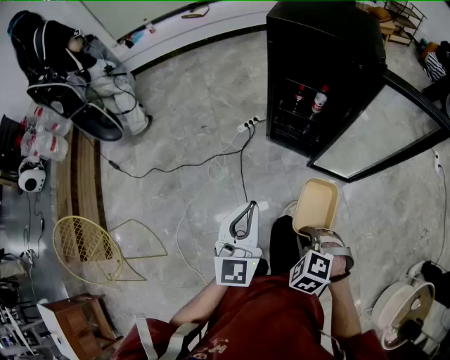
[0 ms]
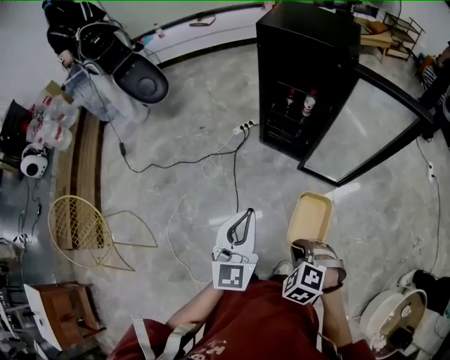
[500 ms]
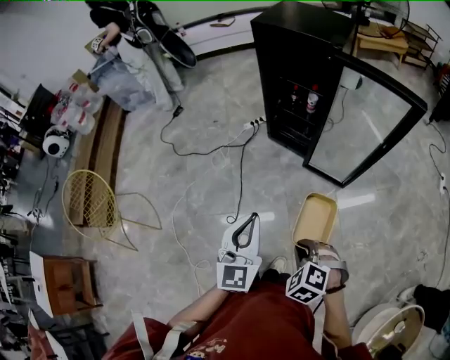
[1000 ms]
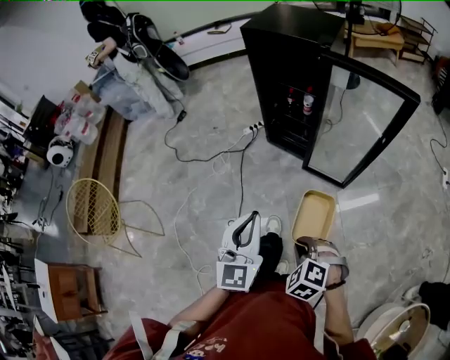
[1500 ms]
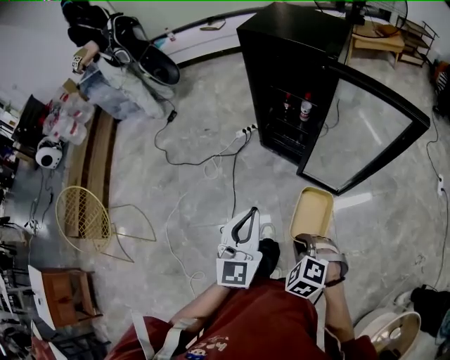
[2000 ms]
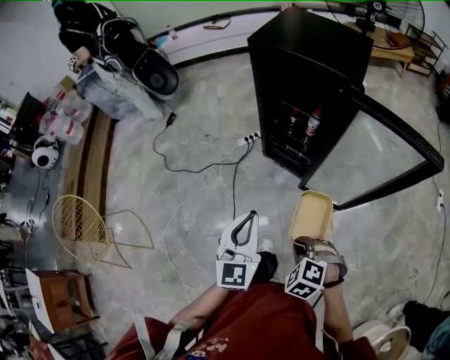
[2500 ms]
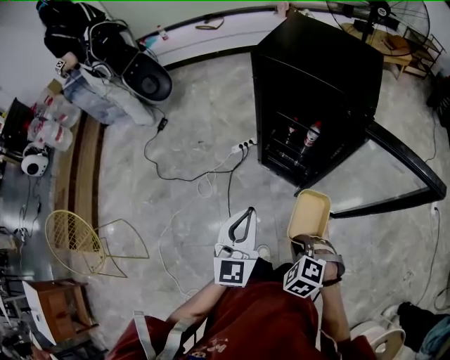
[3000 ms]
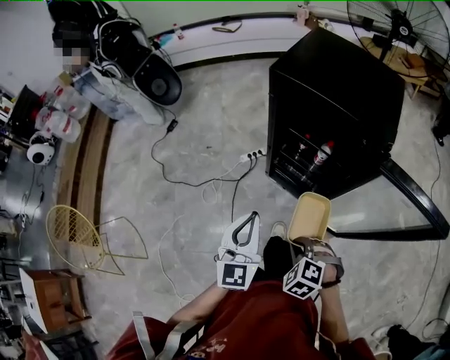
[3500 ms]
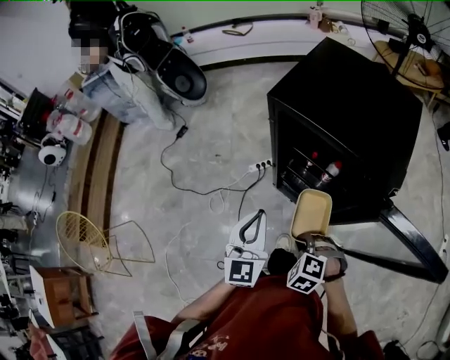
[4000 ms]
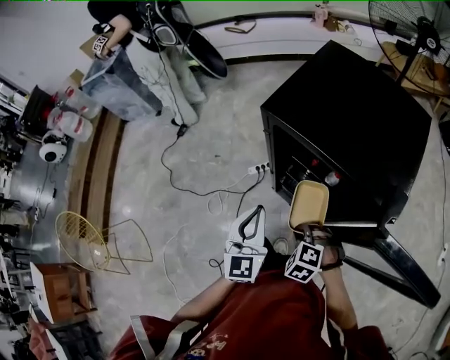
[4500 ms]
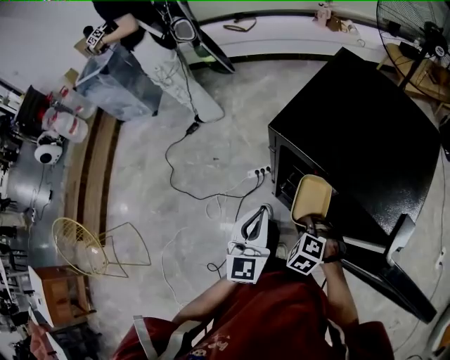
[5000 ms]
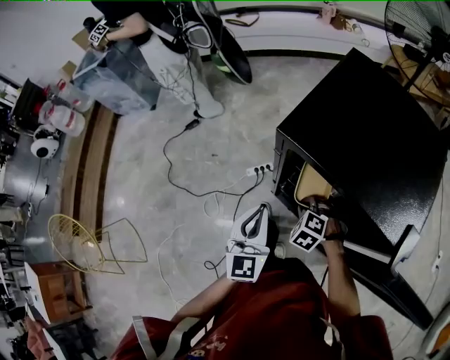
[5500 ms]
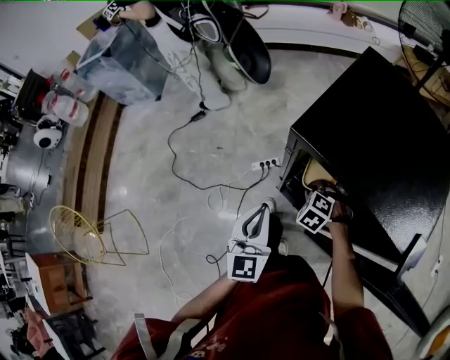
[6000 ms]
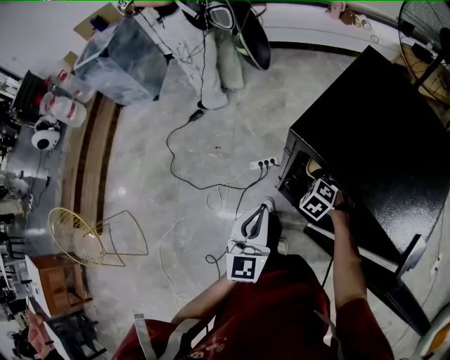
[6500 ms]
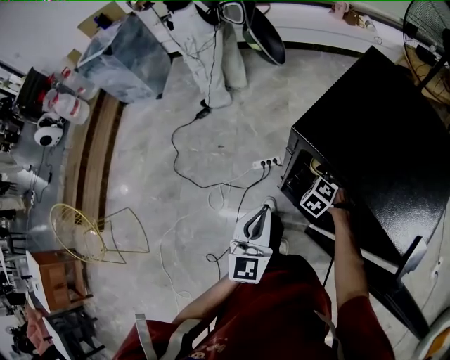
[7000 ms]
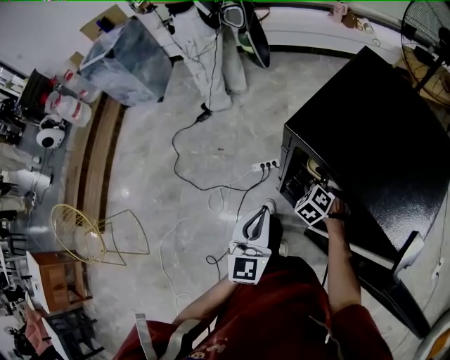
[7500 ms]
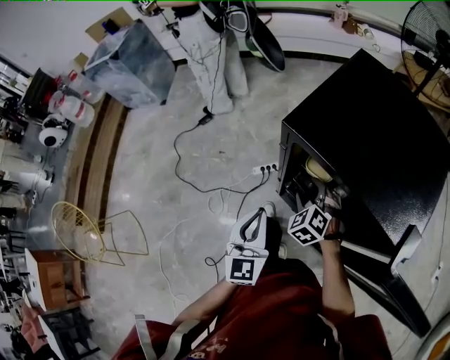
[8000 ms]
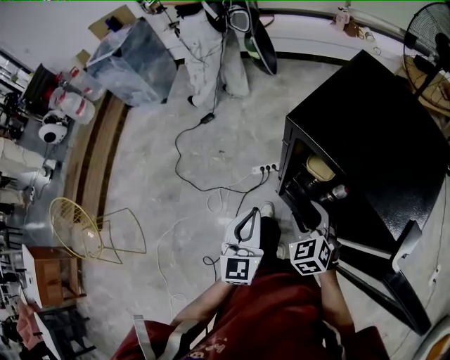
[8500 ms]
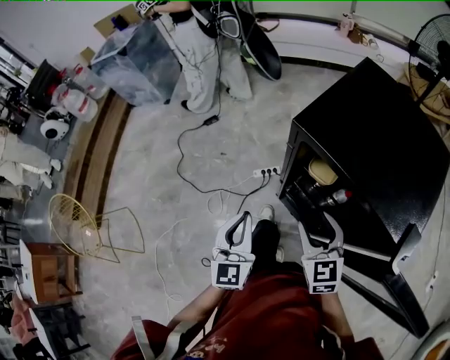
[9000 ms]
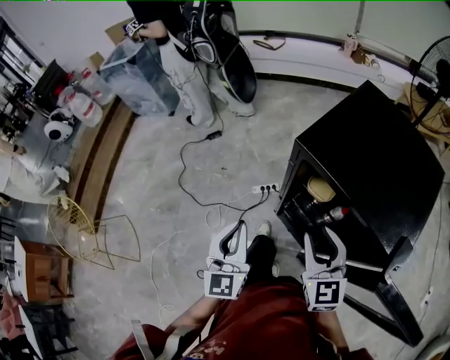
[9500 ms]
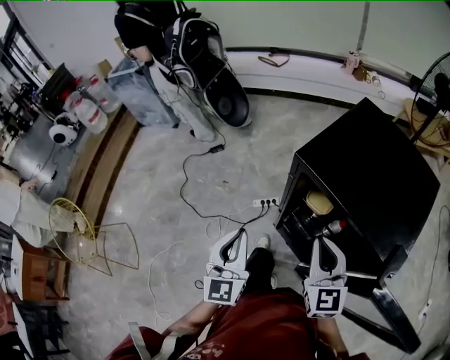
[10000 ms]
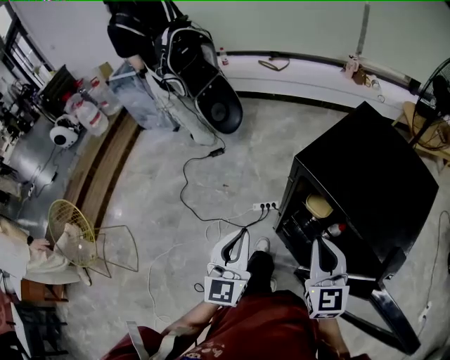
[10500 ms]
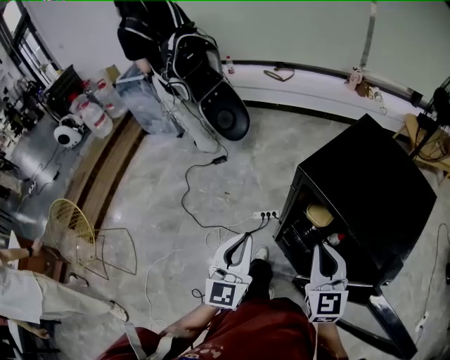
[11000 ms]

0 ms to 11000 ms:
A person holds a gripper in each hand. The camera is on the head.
0 ms to 2000 ms: Both grippers travel together to the right and backward, approximately 20 cm.
2000 ms to 3500 ms: The two grippers go roughly 25 cm forward.
3500 ms to 5500 ms: The grippers both shift forward by roughly 30 cm.
5500 ms to 7500 ms: The right gripper heads forward, covering some 10 cm, and opens its fingers.
7500 ms to 9000 ms: The right gripper is displaced upward and backward by approximately 25 cm, and tips its fingers upward by roughly 30 degrees. The left gripper heads to the left, covering approximately 5 cm.
9000 ms to 11000 ms: The grippers both shift upward by about 10 cm. The right gripper closes up.

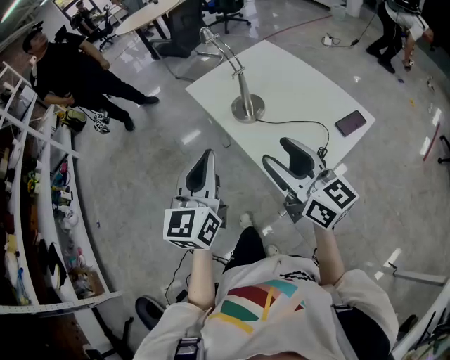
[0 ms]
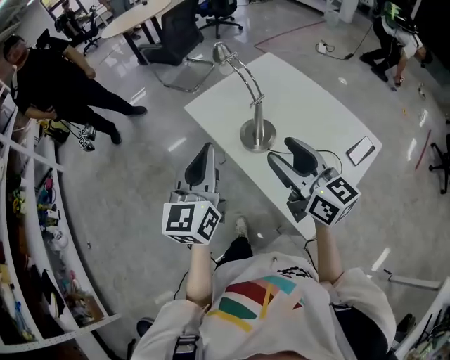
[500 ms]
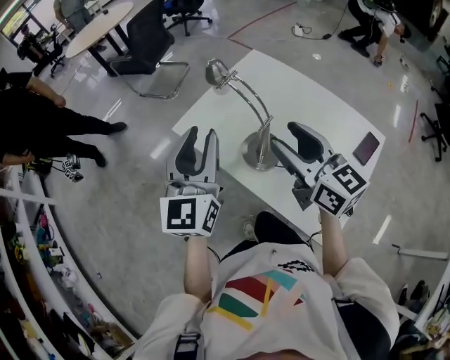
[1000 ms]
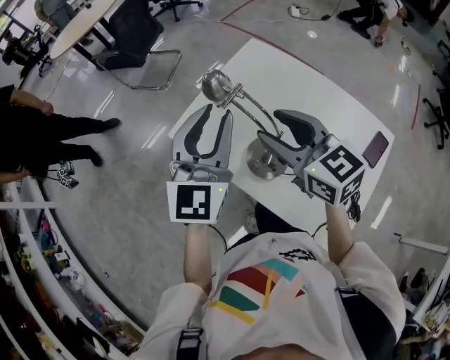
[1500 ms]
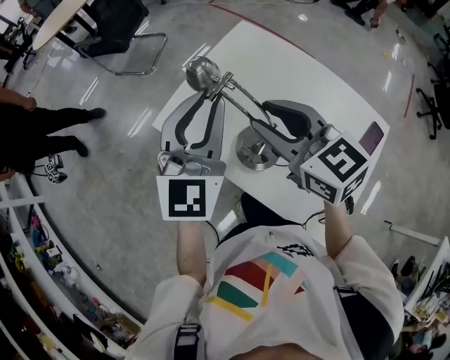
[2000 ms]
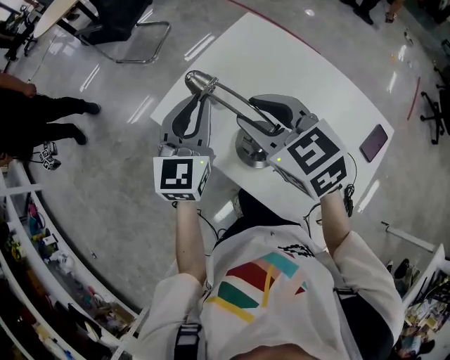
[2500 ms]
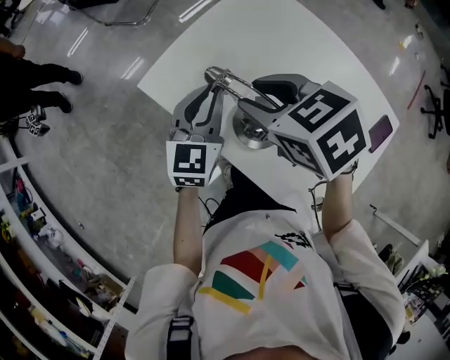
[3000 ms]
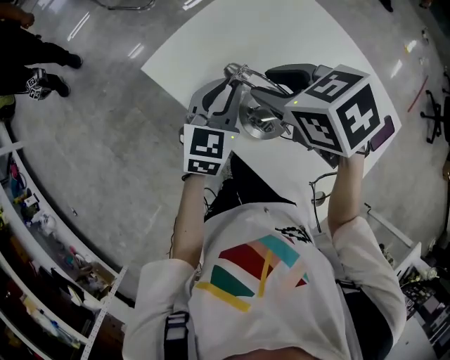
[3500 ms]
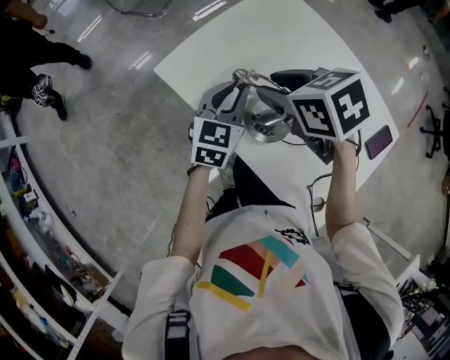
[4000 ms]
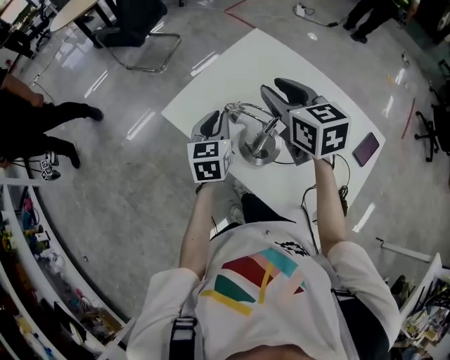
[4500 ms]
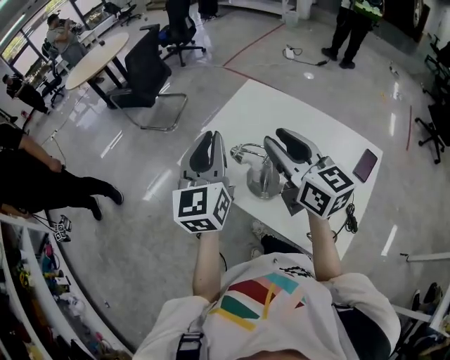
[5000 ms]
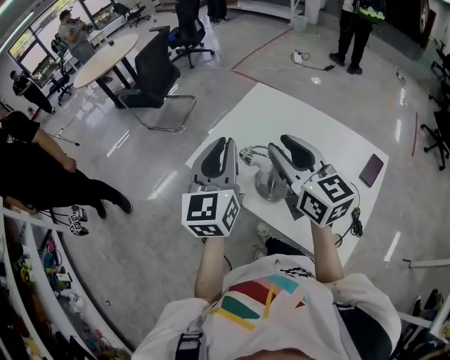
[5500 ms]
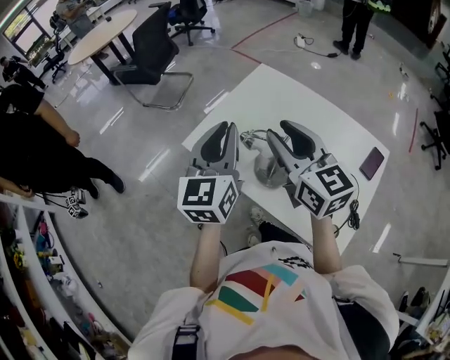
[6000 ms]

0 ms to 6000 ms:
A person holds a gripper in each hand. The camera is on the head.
0 ms to 2000 ms: The pair of grippers is taken forward, some 50 cm. The right gripper swivels roughly 30 degrees, and closes its fingers, while the left gripper rotates some 30 degrees.
2000 ms to 4000 ms: The right gripper shifts approximately 10 cm downward, and tilts its fingers roughly 30 degrees downward; the left gripper is displaced downward by approximately 25 cm, and turns by about 30 degrees.
4000 ms to 6000 ms: The right gripper goes roughly 20 cm upward and backward, and points its fingers about 50 degrees further upward. Meanwhile the left gripper moves upward, about 25 cm, and swivels about 20 degrees.

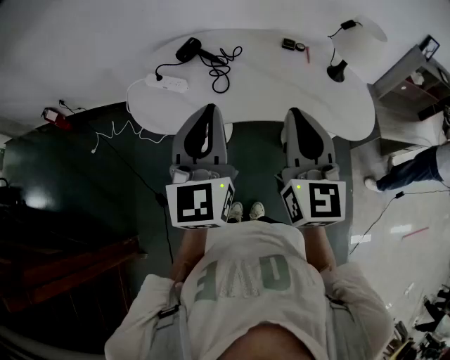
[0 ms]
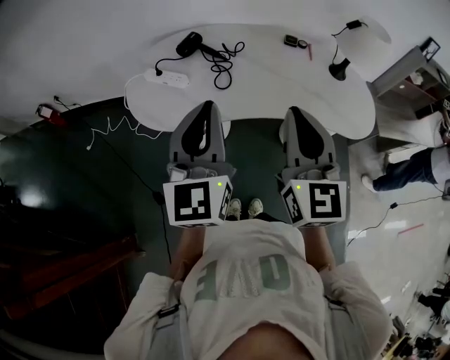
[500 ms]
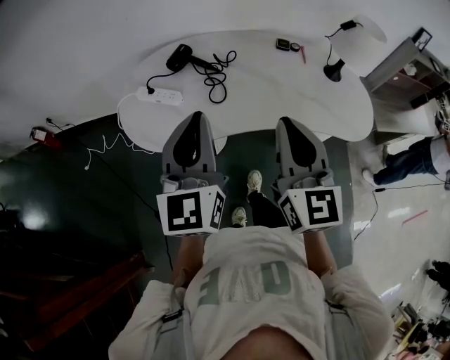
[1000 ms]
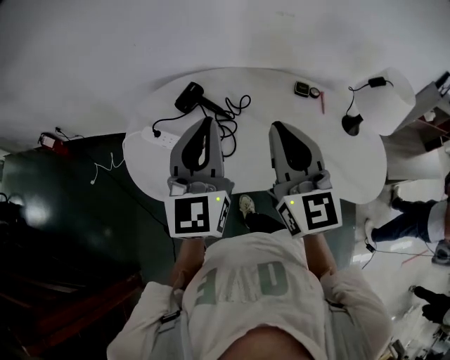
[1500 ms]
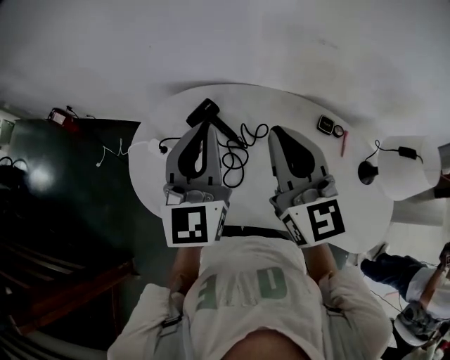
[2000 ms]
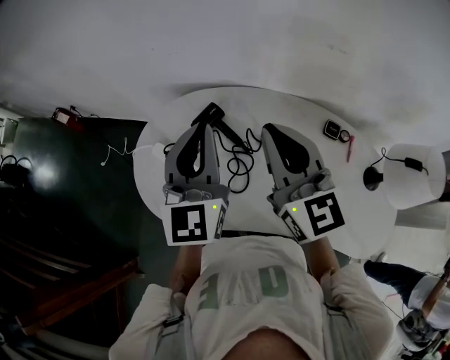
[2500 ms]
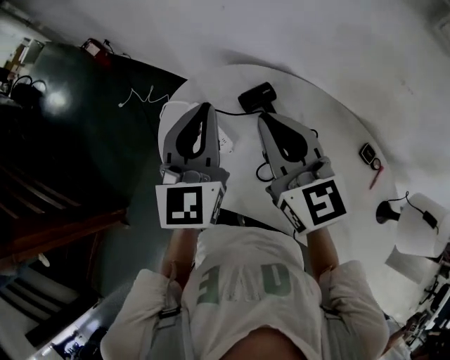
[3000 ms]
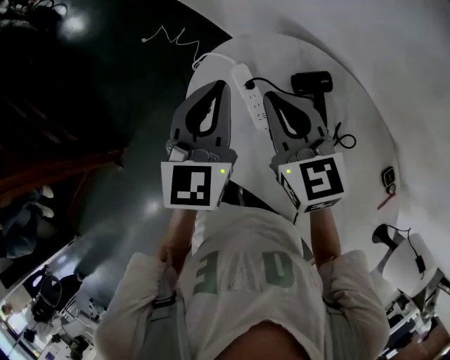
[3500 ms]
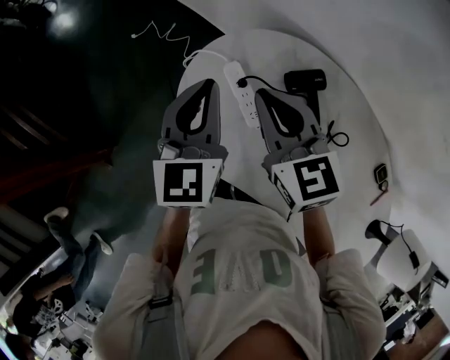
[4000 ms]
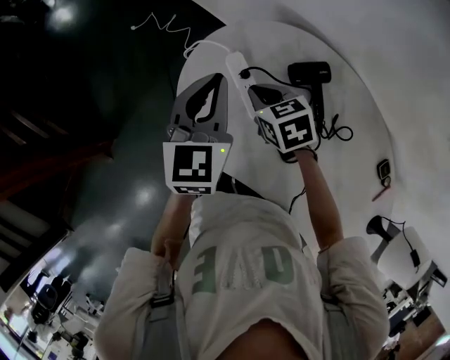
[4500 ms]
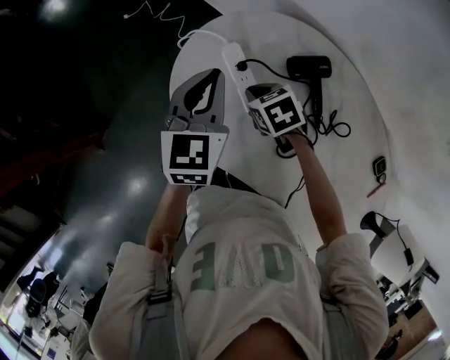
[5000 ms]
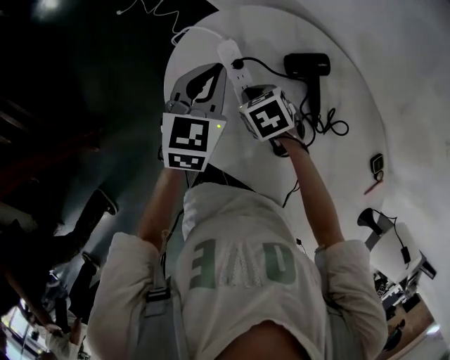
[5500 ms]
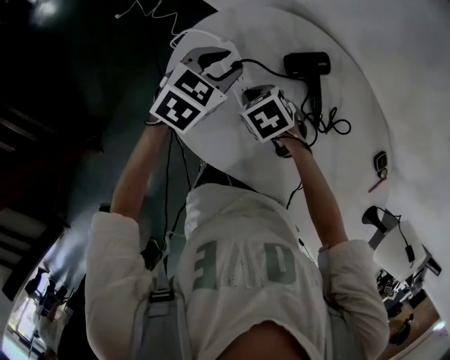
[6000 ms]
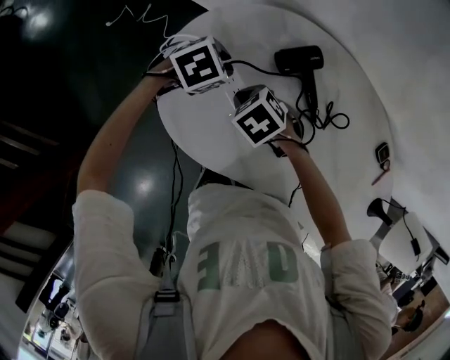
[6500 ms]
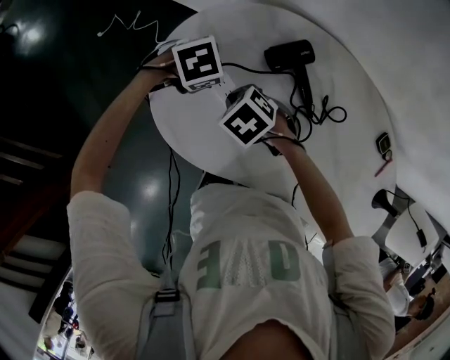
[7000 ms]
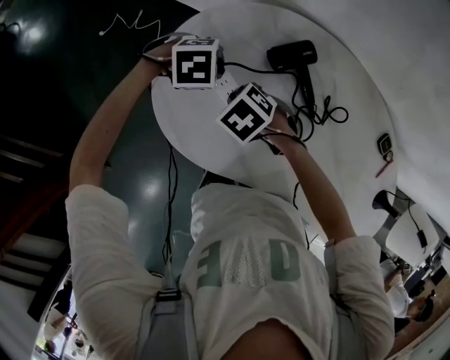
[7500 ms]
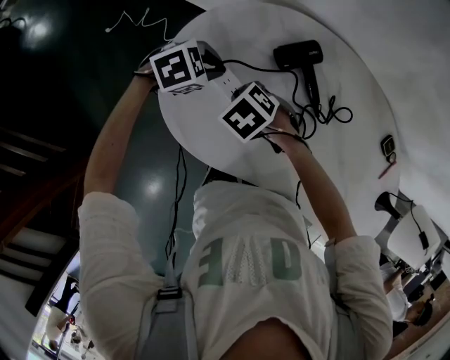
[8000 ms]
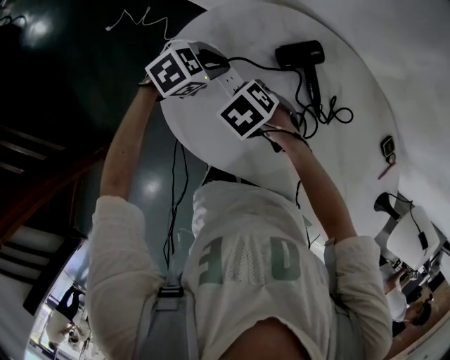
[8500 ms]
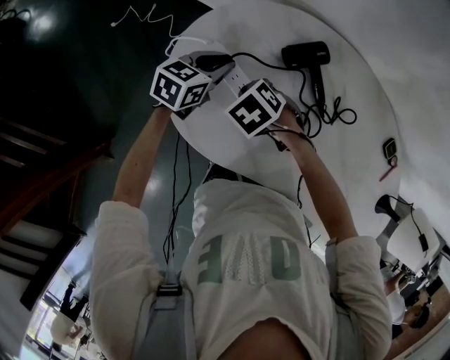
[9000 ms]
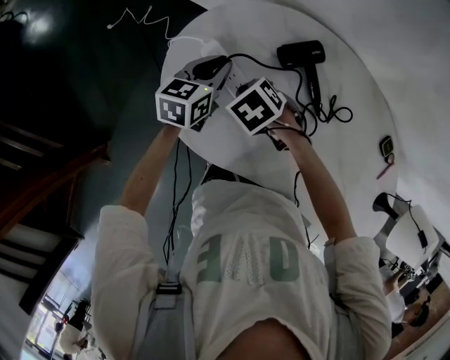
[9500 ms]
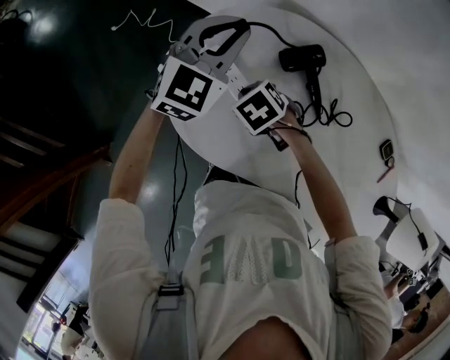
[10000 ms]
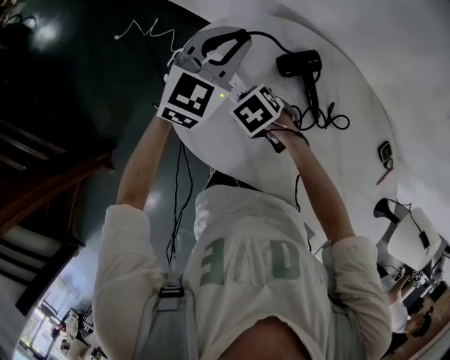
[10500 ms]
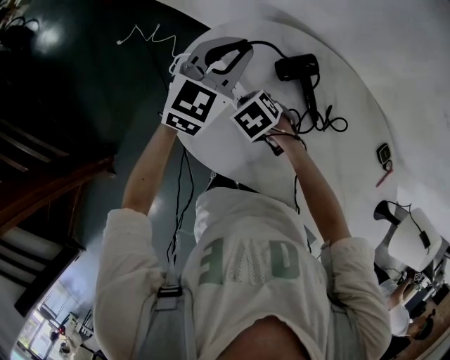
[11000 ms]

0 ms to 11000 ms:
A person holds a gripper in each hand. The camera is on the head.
0 ms to 2000 ms: The two grippers go roughly 35 cm forward. The right gripper swivels some 30 degrees.
2000 ms to 3500 ms: The right gripper ends up about 30 cm from where it was, and rotates approximately 40 degrees. The left gripper changes place by some 25 cm, and swivels about 30 degrees.
3500 ms to 5500 ms: The left gripper is displaced downward by approximately 15 cm; the right gripper travels downward by roughly 25 cm, and points its fingers roughly 50 degrees further downward.
5500 ms to 7500 ms: The left gripper moves downward, about 15 cm, and angles its fingers downward, by approximately 50 degrees.
7500 ms to 9000 ms: The left gripper angles its fingers upward, by some 40 degrees.
9000 ms to 11000 ms: The left gripper moves upward, about 15 cm, and rotates some 40 degrees.
